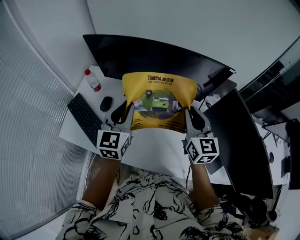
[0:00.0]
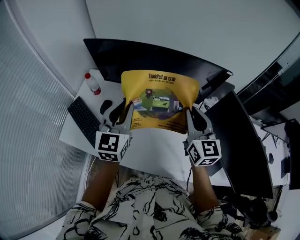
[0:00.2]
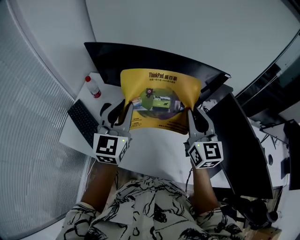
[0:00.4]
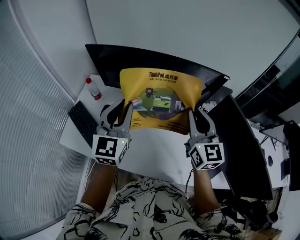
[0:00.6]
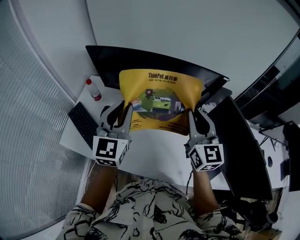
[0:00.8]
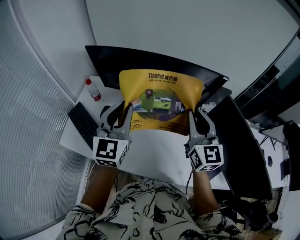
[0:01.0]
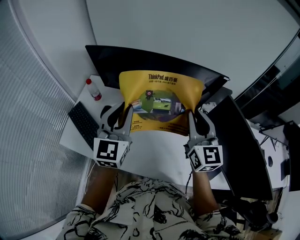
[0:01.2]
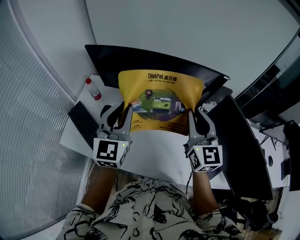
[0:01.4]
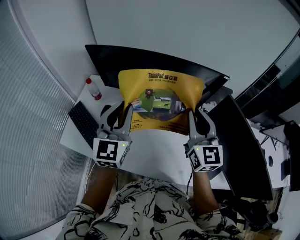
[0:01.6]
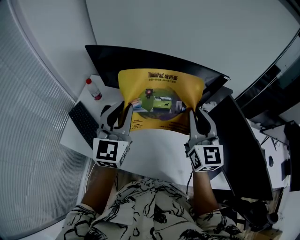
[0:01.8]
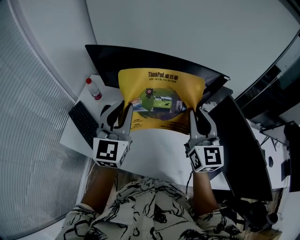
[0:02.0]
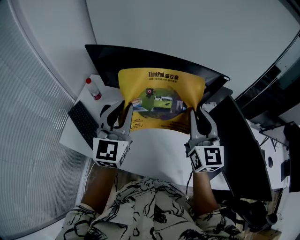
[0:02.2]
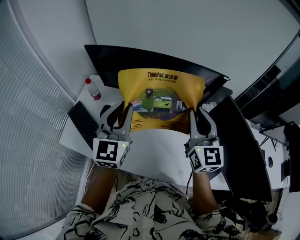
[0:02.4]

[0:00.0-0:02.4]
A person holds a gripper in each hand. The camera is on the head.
0:00.0 to 0:01.2: The grippers both shift upward by approximately 10 cm.
0:01.2 to 0:02.4: Both grippers stay put.

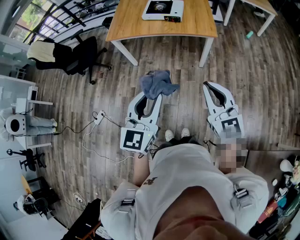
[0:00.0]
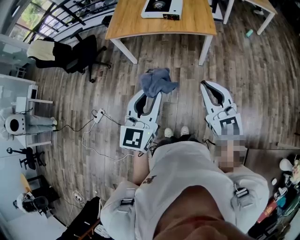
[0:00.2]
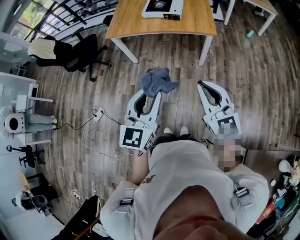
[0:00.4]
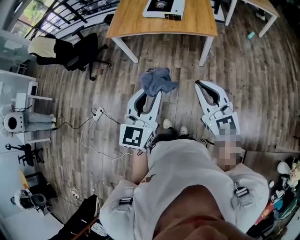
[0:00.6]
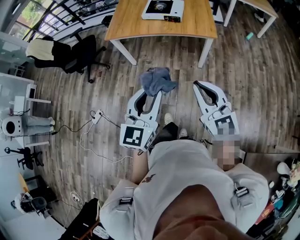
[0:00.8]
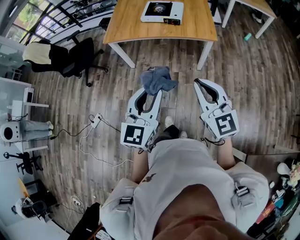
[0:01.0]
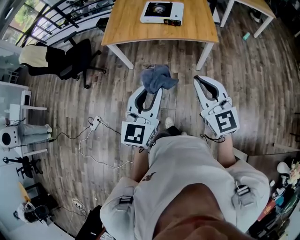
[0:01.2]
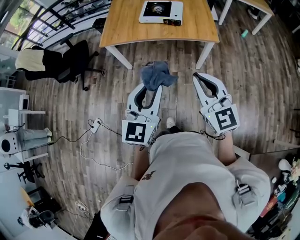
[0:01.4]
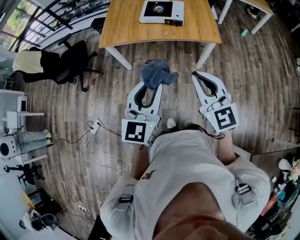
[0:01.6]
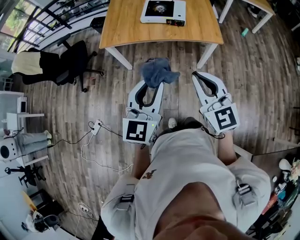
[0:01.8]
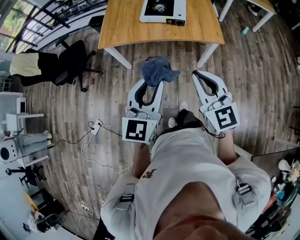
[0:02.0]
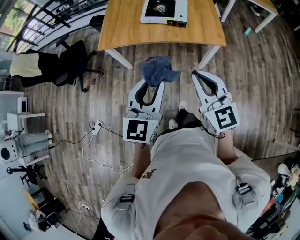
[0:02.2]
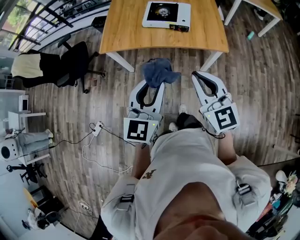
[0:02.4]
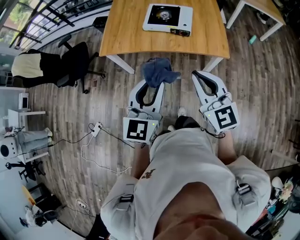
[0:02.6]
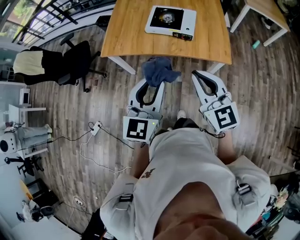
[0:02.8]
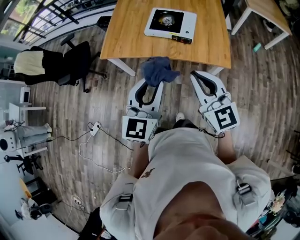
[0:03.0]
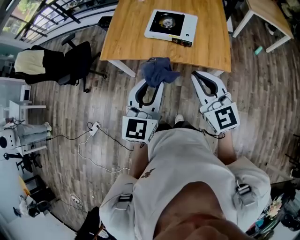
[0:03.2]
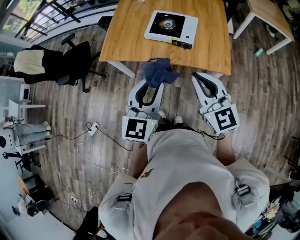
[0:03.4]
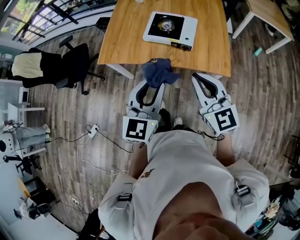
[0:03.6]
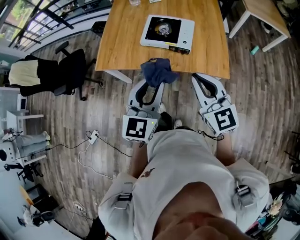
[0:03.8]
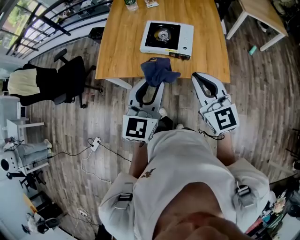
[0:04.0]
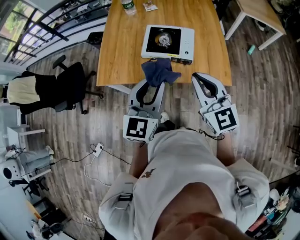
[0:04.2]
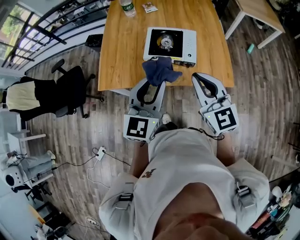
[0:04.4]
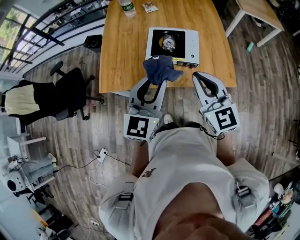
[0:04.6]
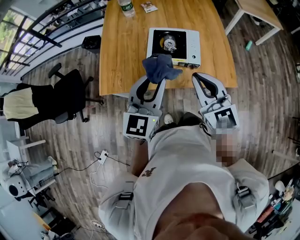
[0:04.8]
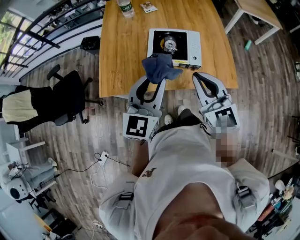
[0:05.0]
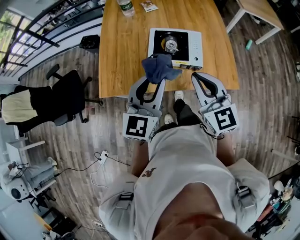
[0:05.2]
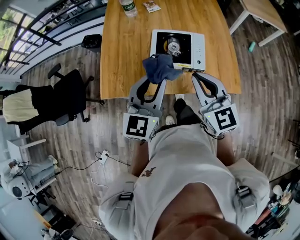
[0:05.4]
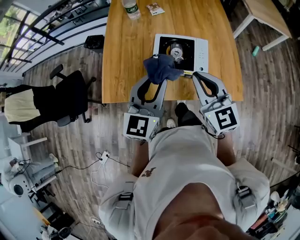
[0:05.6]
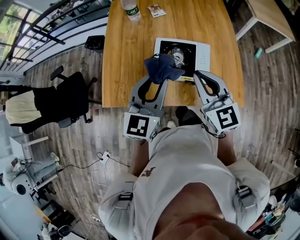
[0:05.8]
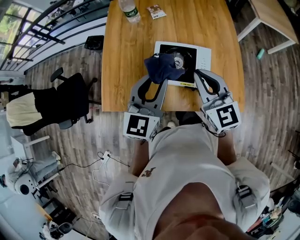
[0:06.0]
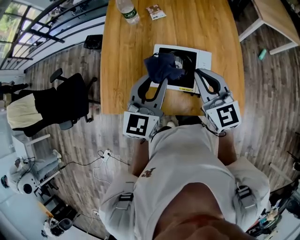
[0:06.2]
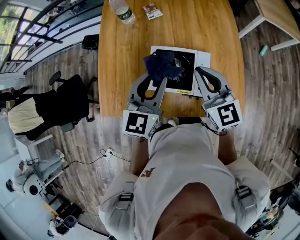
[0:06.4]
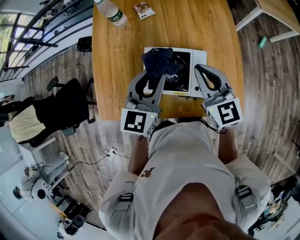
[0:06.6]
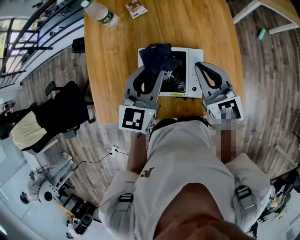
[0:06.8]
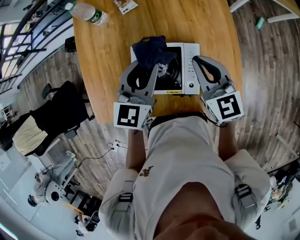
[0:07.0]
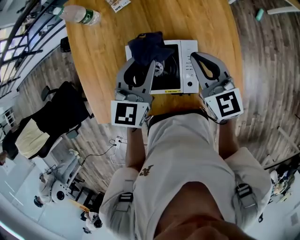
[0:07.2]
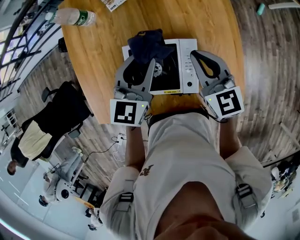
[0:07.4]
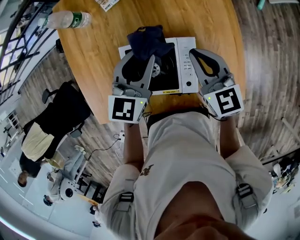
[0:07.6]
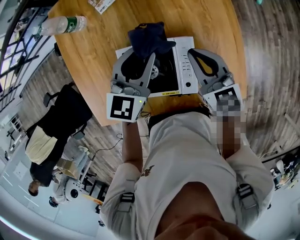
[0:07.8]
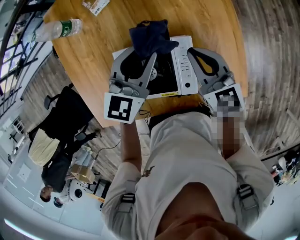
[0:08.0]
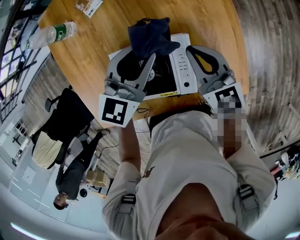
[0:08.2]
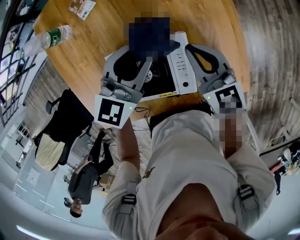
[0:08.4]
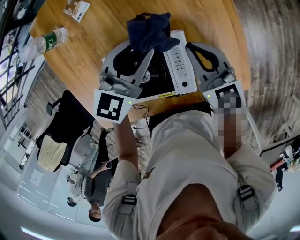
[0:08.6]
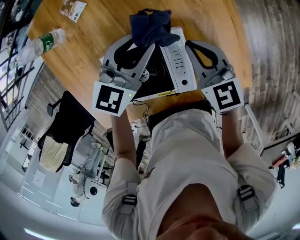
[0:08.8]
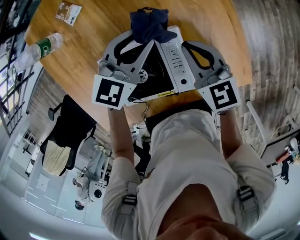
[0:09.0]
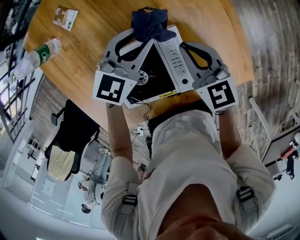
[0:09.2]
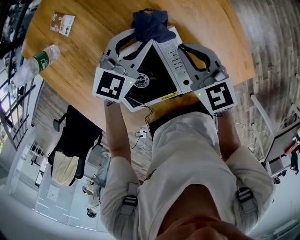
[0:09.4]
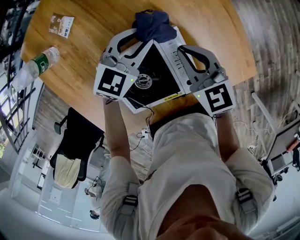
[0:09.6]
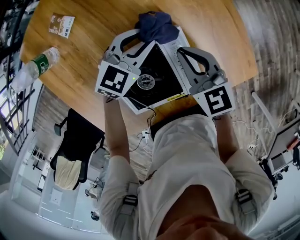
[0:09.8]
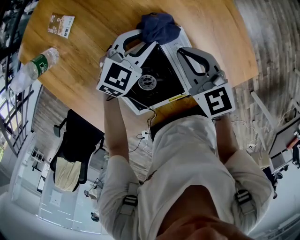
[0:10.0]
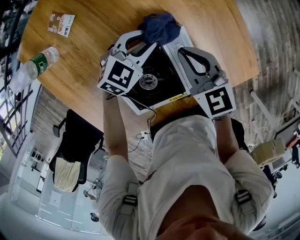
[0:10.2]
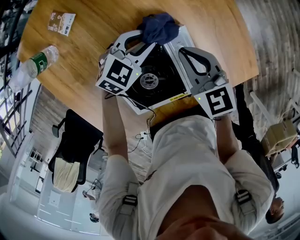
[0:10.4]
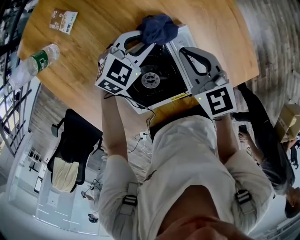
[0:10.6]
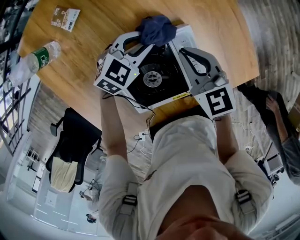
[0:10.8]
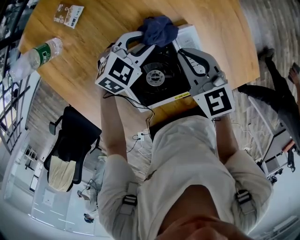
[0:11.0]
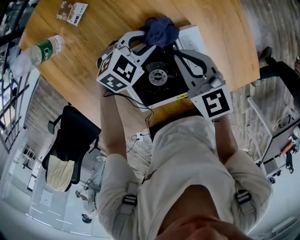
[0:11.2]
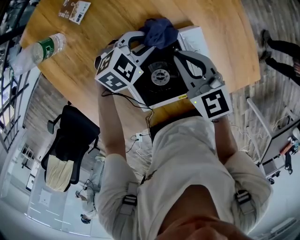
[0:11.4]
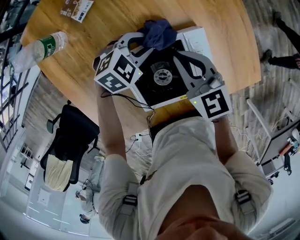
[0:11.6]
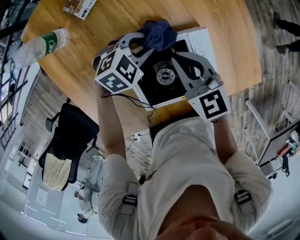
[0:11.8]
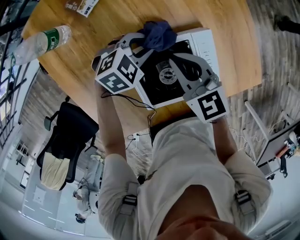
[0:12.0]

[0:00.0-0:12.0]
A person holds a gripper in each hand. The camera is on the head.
0:00.0 to 0:01.6: The right gripper travels forward and to the left by some 20 cm. The left gripper is displaced forward by some 15 cm.
0:01.6 to 0:03.0: The grippers both shift forward by roughly 20 cm.
0:03.0 to 0:04.4: Both grippers travel together forward, approximately 20 cm.
0:04.4 to 0:06.0: The grippers both shift forward by some 20 cm.
0:06.0 to 0:07.6: Both grippers move forward, downward and to the right, about 25 cm. The left gripper changes its angle by some 20 degrees. Meanwhile the right gripper swivels roughly 20 degrees.
0:07.6 to 0:09.0: The right gripper is displaced downward by approximately 10 cm. Meanwhile the left gripper is displaced downward, to the right and forward by some 15 cm, and turns by approximately 30 degrees.
0:09.0 to 0:10.4: The left gripper moves downward, approximately 10 cm, and turns by roughly 30 degrees.
0:10.4 to 0:12.0: The left gripper goes roughly 10 cm to the left and backward. The right gripper shifts roughly 10 cm to the left.

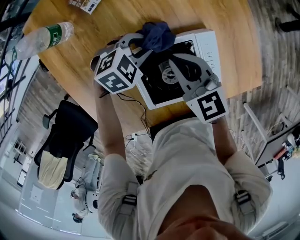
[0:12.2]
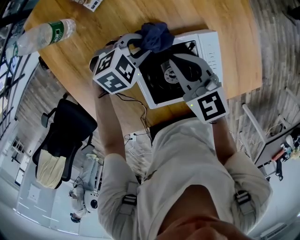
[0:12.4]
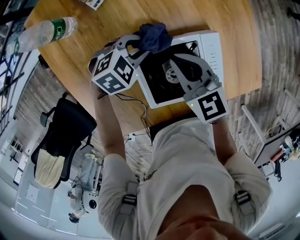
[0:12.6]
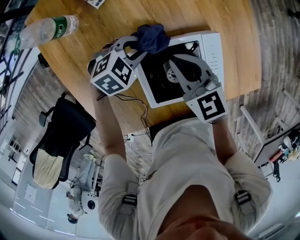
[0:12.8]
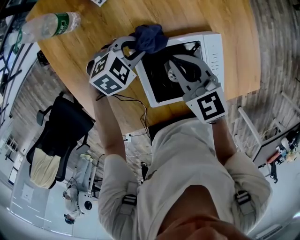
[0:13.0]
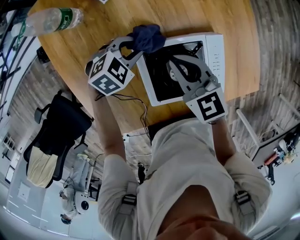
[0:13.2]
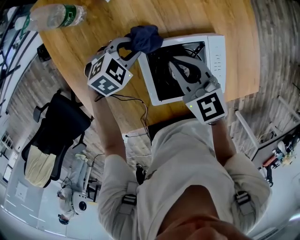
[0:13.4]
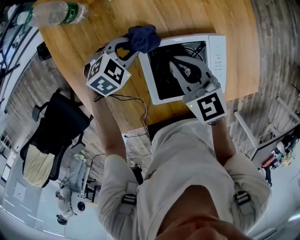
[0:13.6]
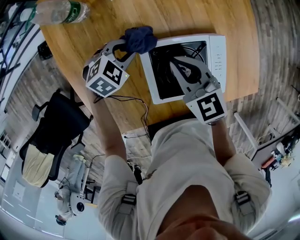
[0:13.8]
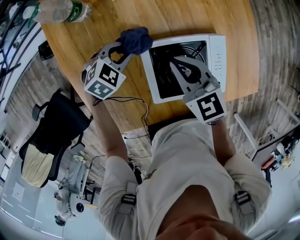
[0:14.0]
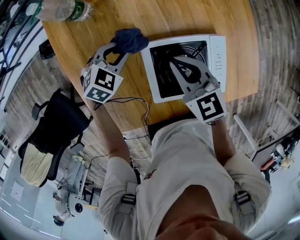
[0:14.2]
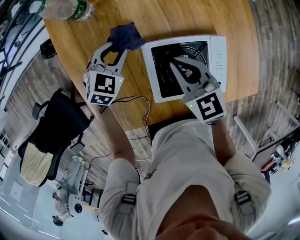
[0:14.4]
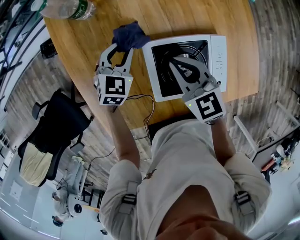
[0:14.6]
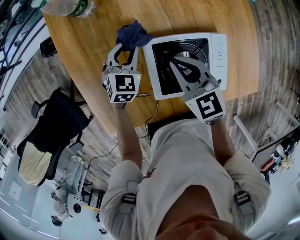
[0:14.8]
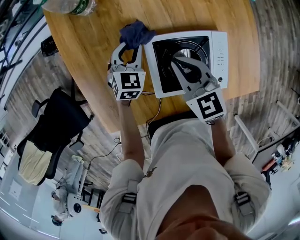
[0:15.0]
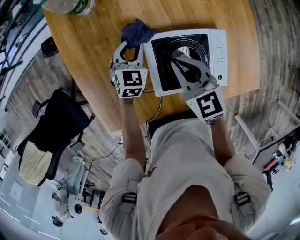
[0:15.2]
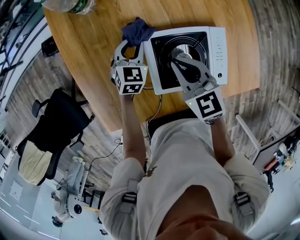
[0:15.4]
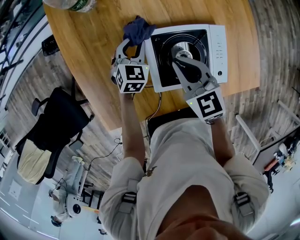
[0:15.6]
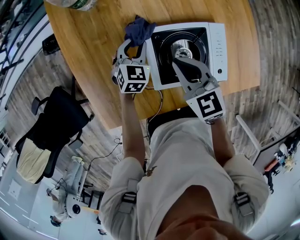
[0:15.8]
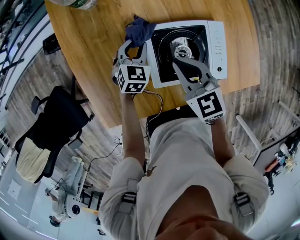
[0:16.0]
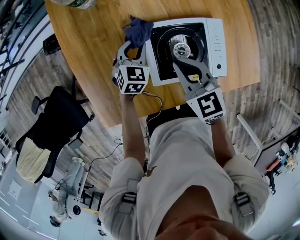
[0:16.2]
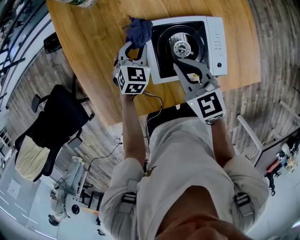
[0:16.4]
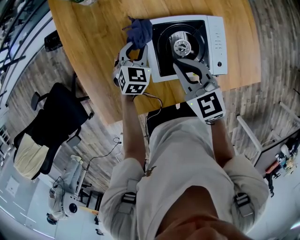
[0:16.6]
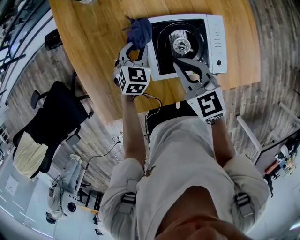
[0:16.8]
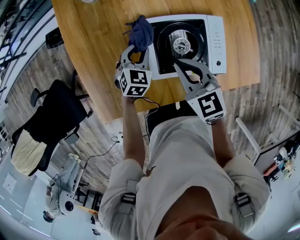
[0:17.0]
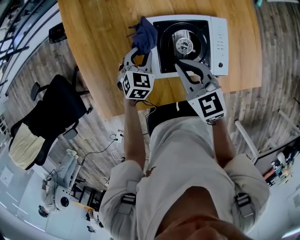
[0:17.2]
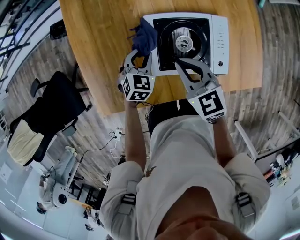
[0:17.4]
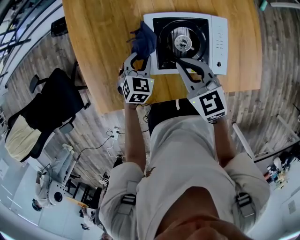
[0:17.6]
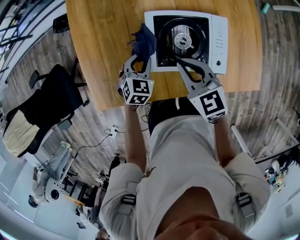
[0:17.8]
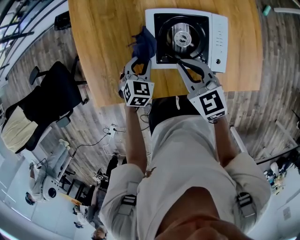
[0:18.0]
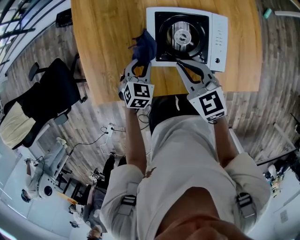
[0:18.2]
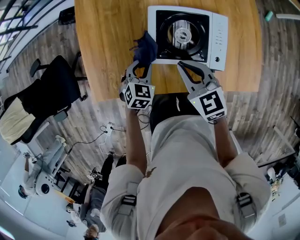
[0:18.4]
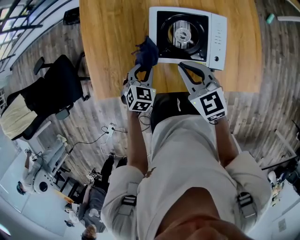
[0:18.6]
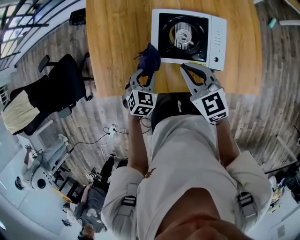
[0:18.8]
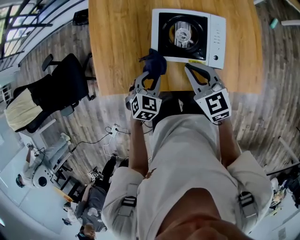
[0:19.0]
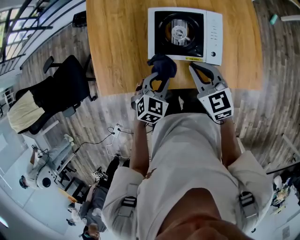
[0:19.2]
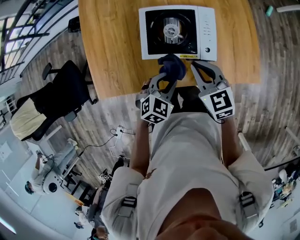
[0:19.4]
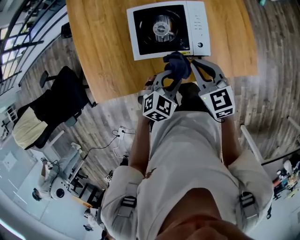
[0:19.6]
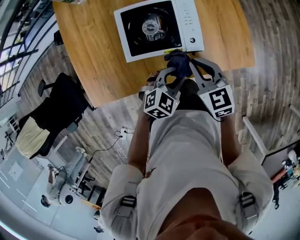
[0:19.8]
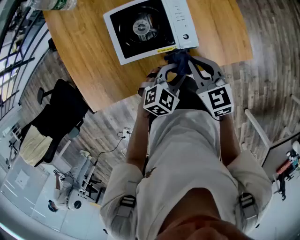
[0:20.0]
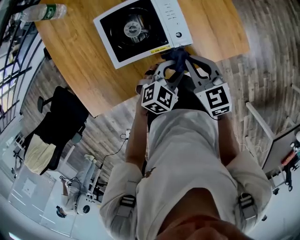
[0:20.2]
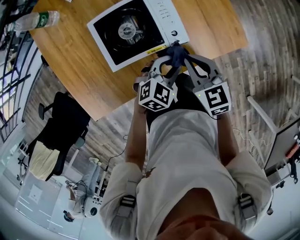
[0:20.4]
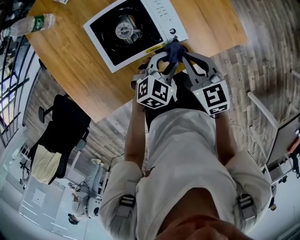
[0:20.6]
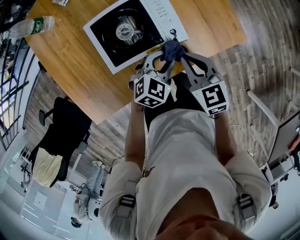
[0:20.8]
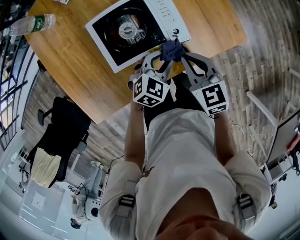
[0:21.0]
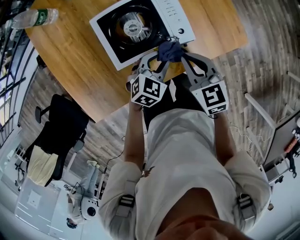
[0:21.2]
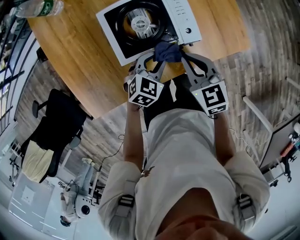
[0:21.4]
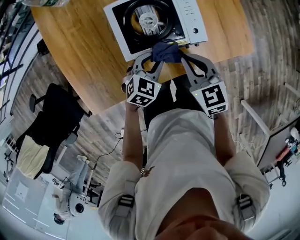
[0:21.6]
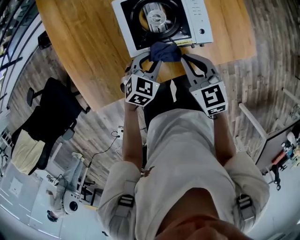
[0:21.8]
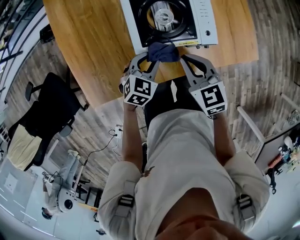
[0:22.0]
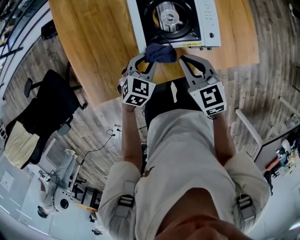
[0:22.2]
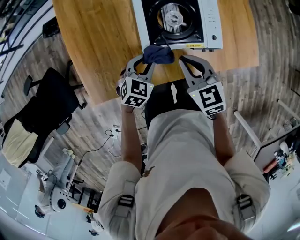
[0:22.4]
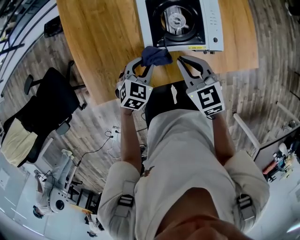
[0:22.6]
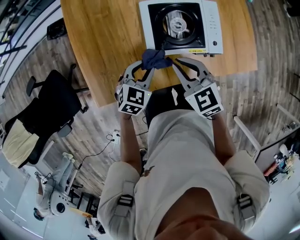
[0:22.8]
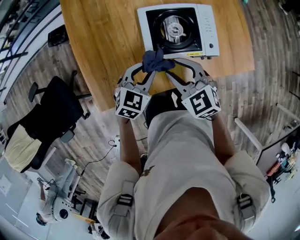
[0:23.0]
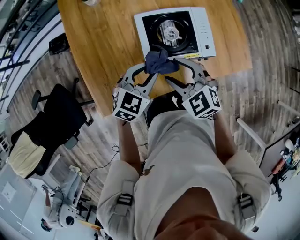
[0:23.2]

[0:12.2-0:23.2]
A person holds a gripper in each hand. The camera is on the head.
0:12.2 to 0:13.8: The left gripper travels to the left and backward by about 10 cm, while the right gripper ends up roughly 5 cm from where it was.
0:13.8 to 0:15.4: The left gripper swivels approximately 40 degrees.
0:15.4 to 0:17.0: Both grippers move backward, about 10 cm.
0:17.0 to 0:18.4: The left gripper is displaced backward by approximately 15 cm. The right gripper travels backward by about 5 cm.
0:18.4 to 0:20.0: The right gripper ends up about 15 cm from where it was. The left gripper shifts by approximately 25 cm, and rotates some 40 degrees.
0:20.0 to 0:21.6: The left gripper shifts roughly 15 cm to the left, while the right gripper moves to the left, approximately 5 cm.
0:21.6 to 0:23.2: The left gripper travels upward and to the left by some 15 cm. Meanwhile the right gripper is displaced to the left and upward by about 15 cm, changes its angle by about 30 degrees, and opens its fingers.
